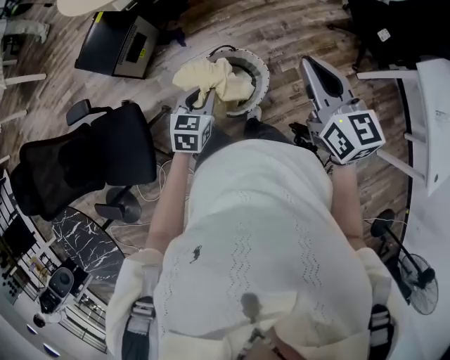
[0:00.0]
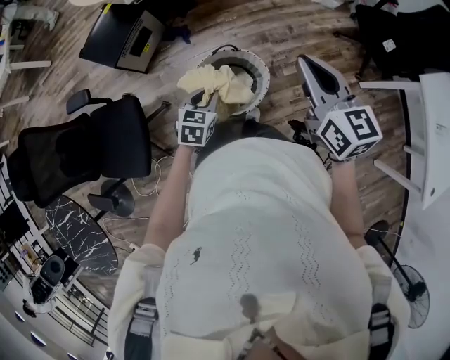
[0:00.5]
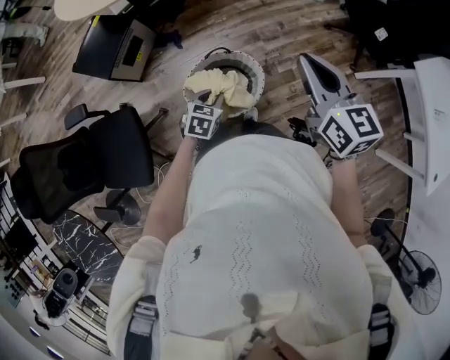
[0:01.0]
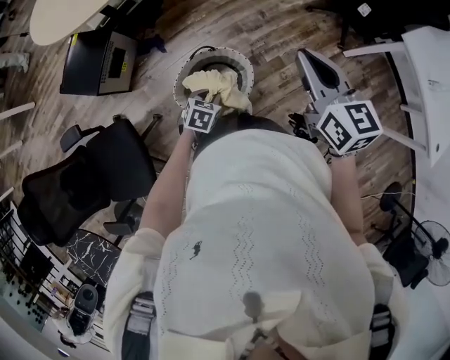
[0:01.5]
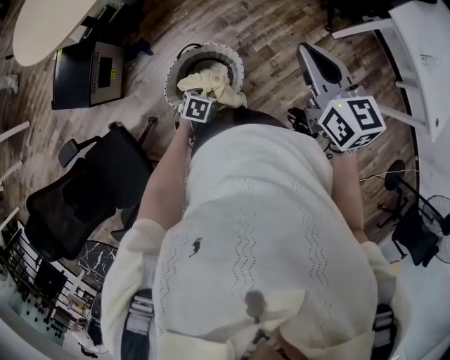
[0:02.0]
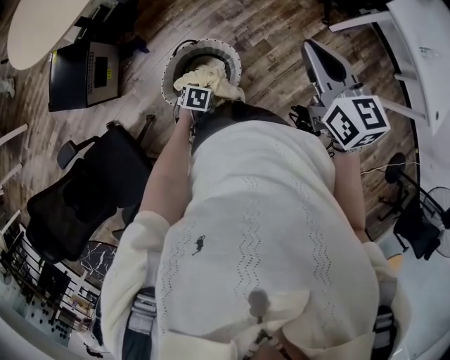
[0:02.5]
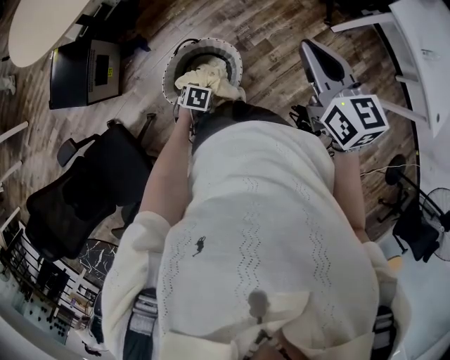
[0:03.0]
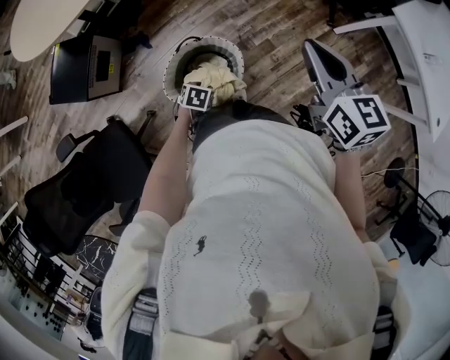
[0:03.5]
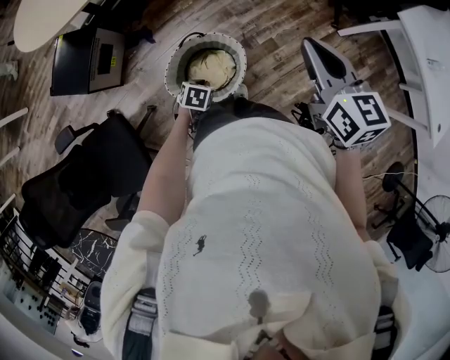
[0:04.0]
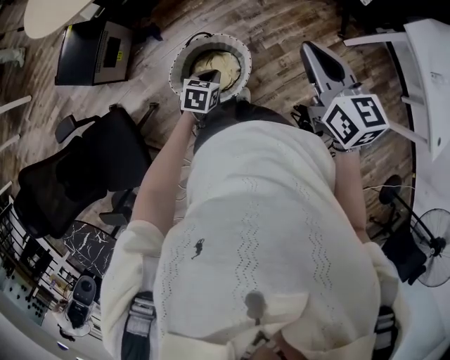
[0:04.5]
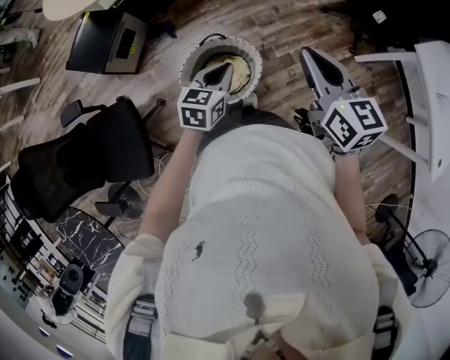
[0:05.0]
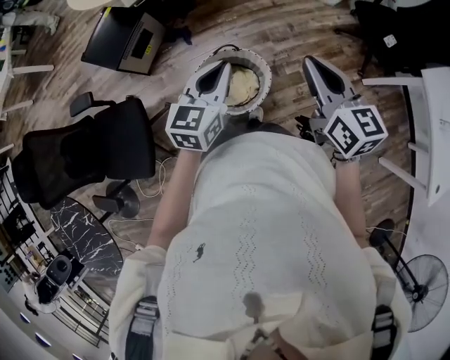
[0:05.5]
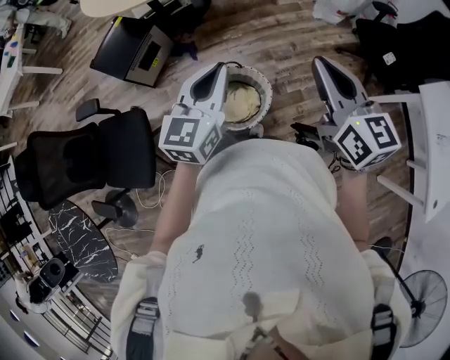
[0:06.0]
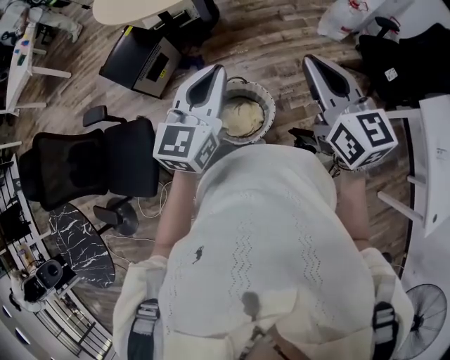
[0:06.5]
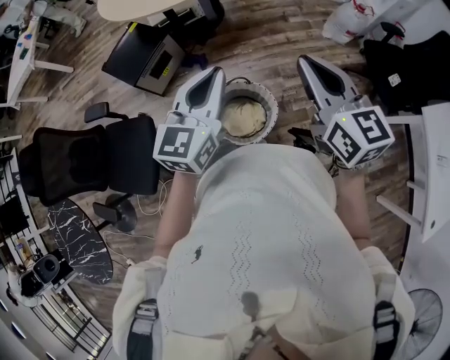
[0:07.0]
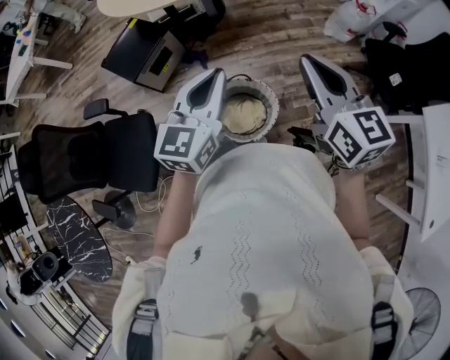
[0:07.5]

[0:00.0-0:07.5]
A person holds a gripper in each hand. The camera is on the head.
0:00.0 to 0:02.0: The left gripper travels downward by some 20 cm, and swivels roughly 40 degrees. The right gripper ends up about 10 cm from where it was.
0:02.0 to 0:04.0: The grippers stay close to where they were, moving slightly.
0:04.0 to 0:05.5: The left gripper heads upward, covering approximately 35 cm, and points its fingers about 50 degrees further upward. The right gripper shifts about 5 cm to the left.
0:05.5 to 0:07.5: The right gripper heads upward and forward, covering some 10 cm; the left gripper heads upward, covering approximately 10 cm.

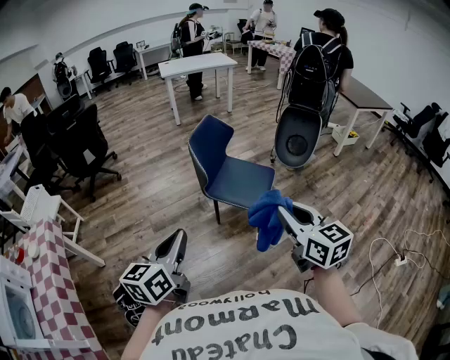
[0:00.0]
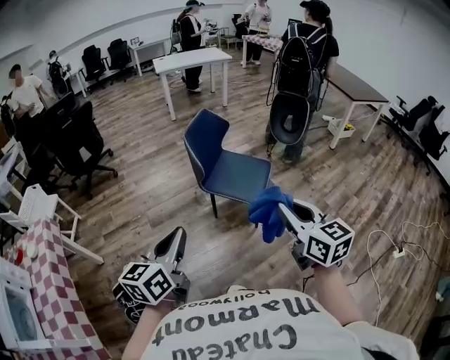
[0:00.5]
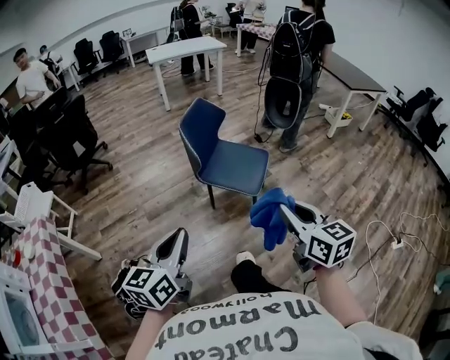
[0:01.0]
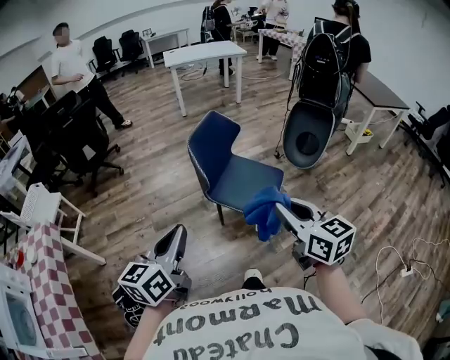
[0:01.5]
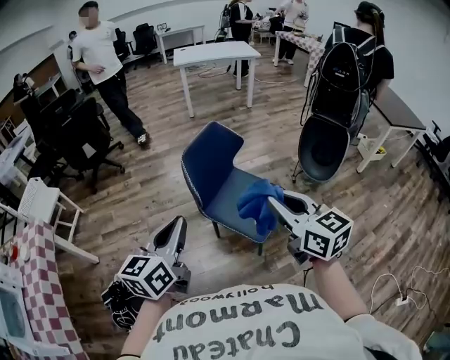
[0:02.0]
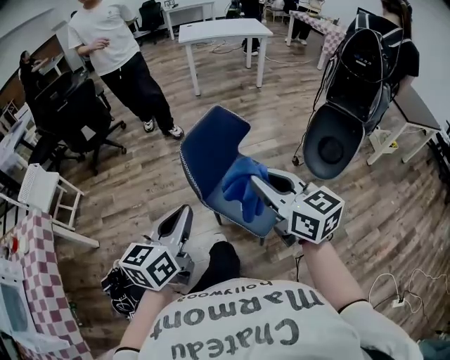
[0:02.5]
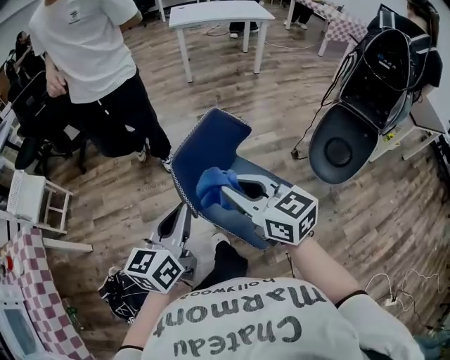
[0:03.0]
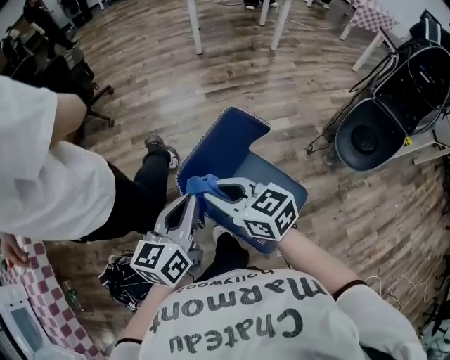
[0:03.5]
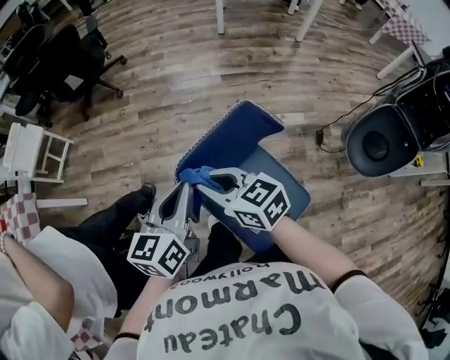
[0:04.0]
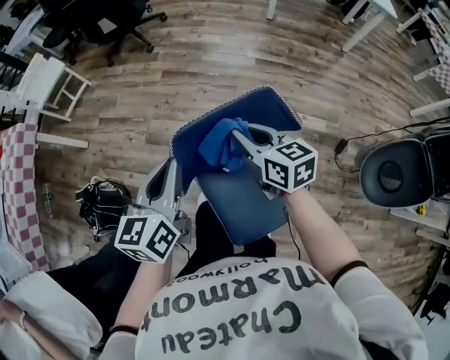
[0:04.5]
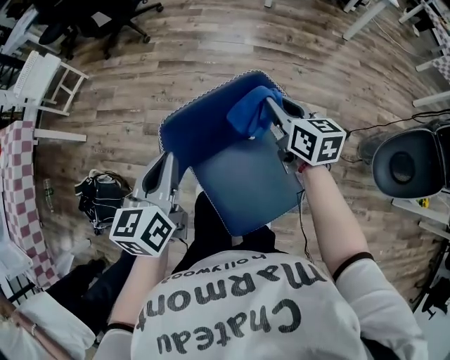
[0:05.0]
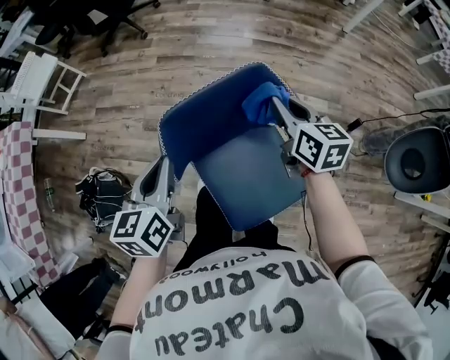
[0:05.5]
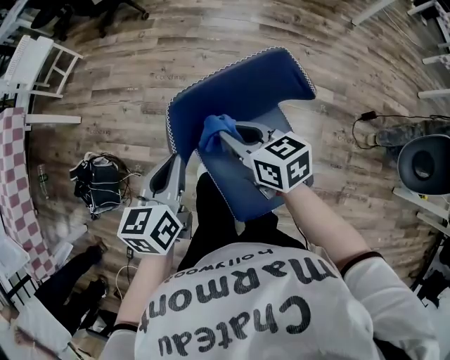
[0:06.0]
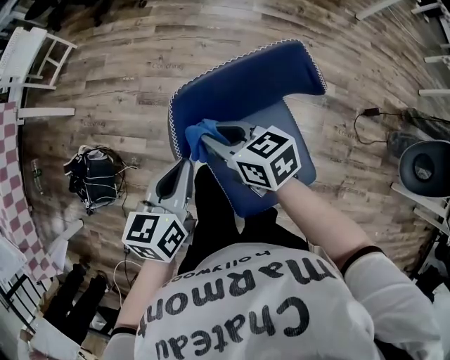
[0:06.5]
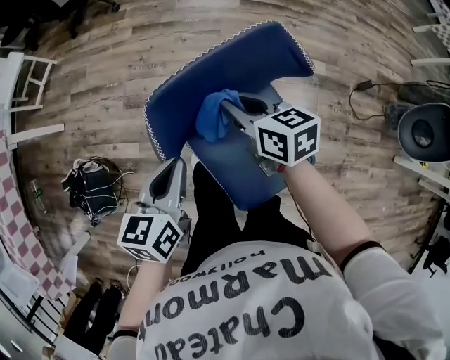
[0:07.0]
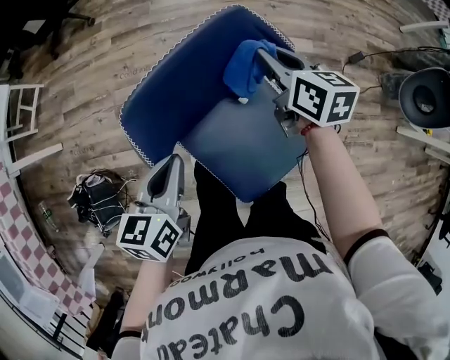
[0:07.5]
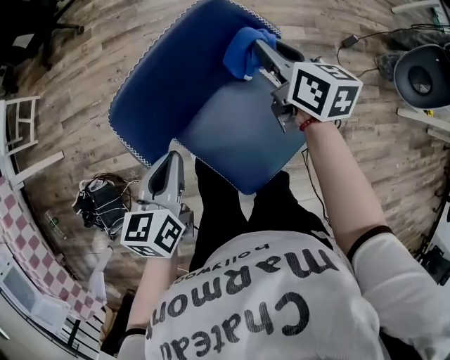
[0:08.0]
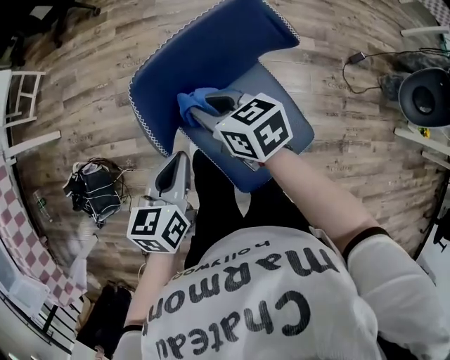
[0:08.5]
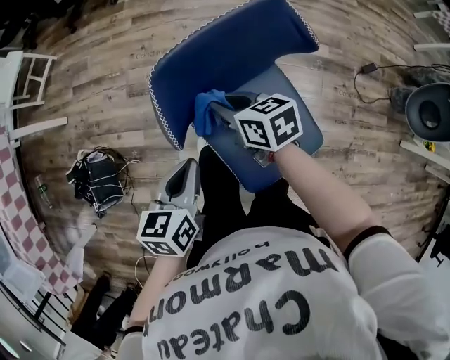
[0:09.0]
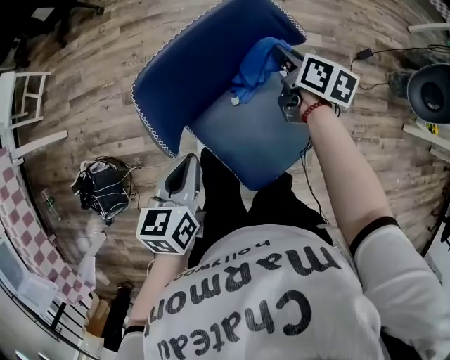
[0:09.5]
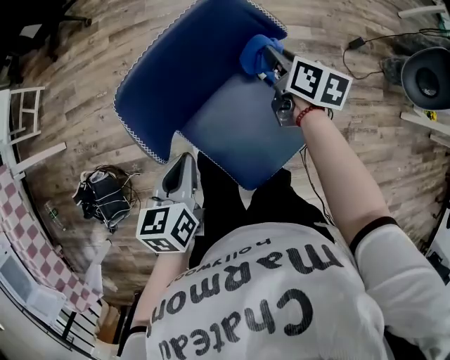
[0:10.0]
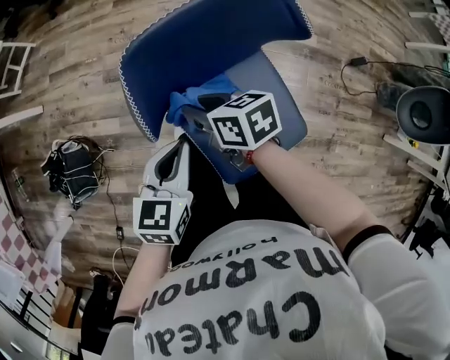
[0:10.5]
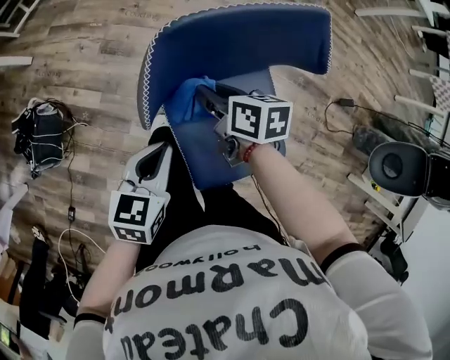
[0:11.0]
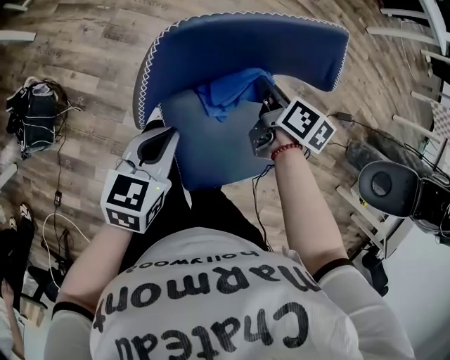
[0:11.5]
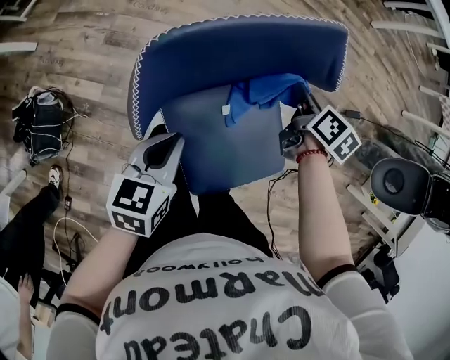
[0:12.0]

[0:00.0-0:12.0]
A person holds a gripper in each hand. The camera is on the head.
0:00.0 to 0:02.0: The left gripper moves forward and to the right, approximately 25 cm. Meanwhile the right gripper goes about 25 cm forward.
0:02.0 to 0:04.0: The left gripper shifts by some 35 cm, and turns by about 20 degrees. The right gripper changes place by some 40 cm, and changes its angle by about 50 degrees.
0:04.0 to 0:06.0: The grippers both shift downward by roughly 10 cm. The right gripper moves approximately 20 cm to the right and comes back. Meanwhile the left gripper rotates roughly 20 degrees.
0:06.0 to 0:08.0: The left gripper heads downward, covering about 5 cm; the right gripper ends up roughly 20 cm from where it was, and rotates roughly 40 degrees.
0:08.0 to 0:10.0: The right gripper heads downward, covering some 5 cm, and travels to the left and back again, some 20 cm each way.
0:10.0 to 0:12.0: Both grippers travel together downward, about 5 cm.

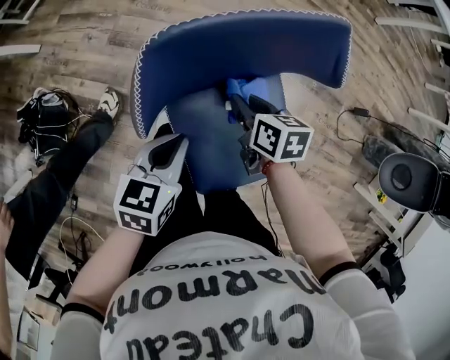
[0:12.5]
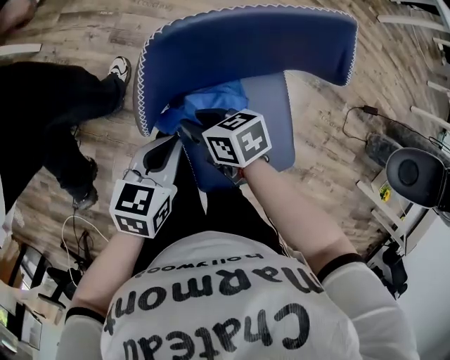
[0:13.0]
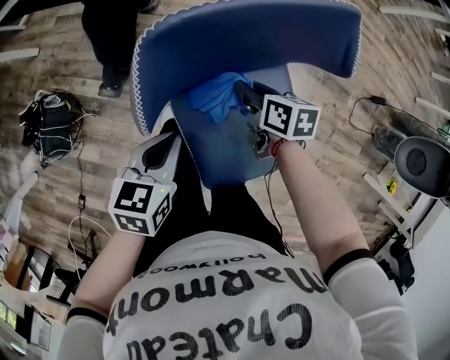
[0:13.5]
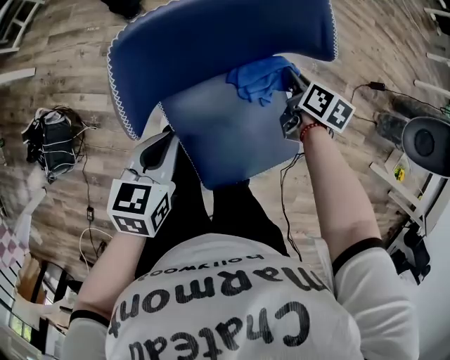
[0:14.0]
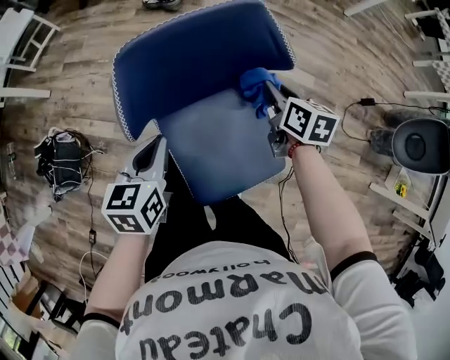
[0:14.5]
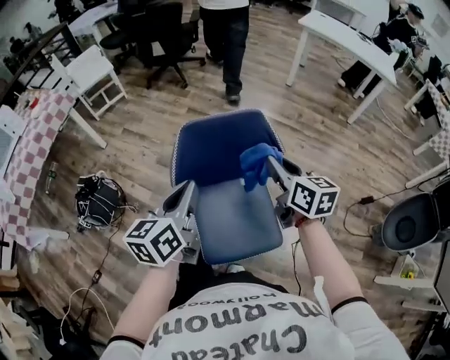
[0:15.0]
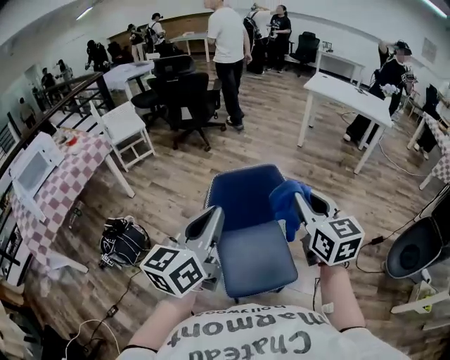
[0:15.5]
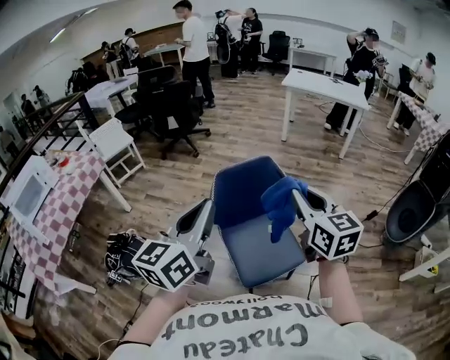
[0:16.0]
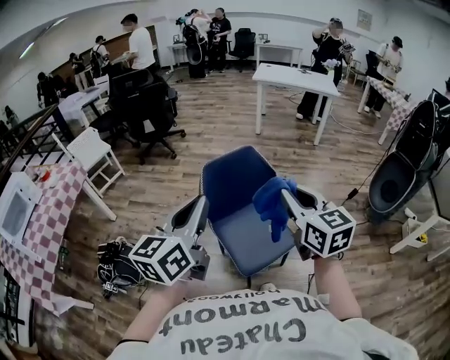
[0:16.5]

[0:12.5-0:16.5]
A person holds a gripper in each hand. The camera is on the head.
0:12.5 to 0:14.5: The right gripper moves approximately 15 cm, while the left gripper is displaced upward by roughly 5 cm.
0:14.5 to 0:16.5: Both grippers travel together upward and backward, approximately 50 cm. The left gripper angles its fingers upward, by roughly 40 degrees. The right gripper changes its angle by some 40 degrees.

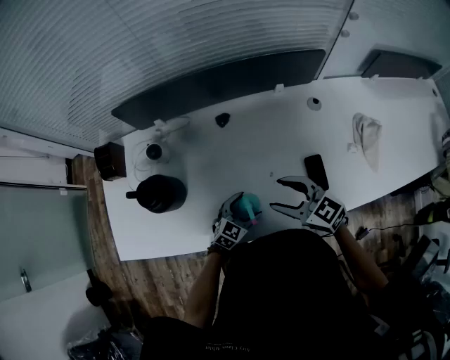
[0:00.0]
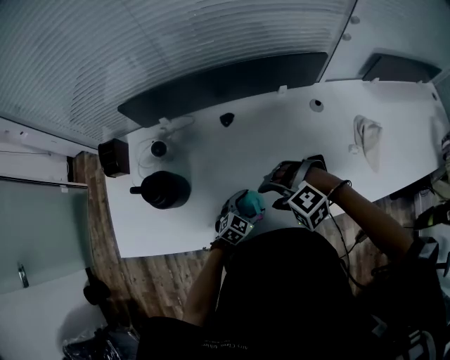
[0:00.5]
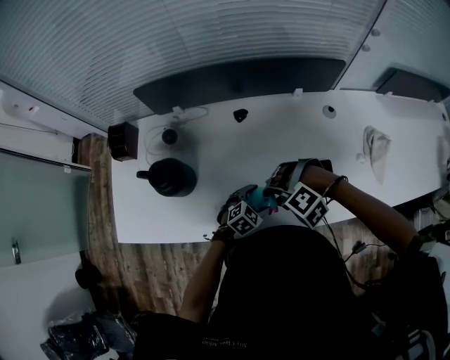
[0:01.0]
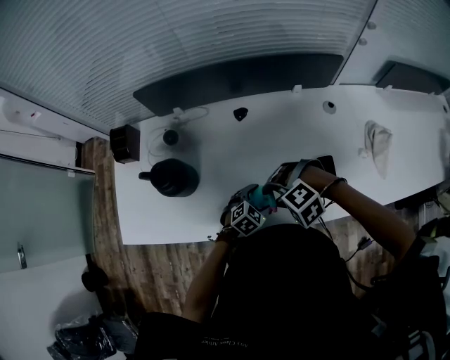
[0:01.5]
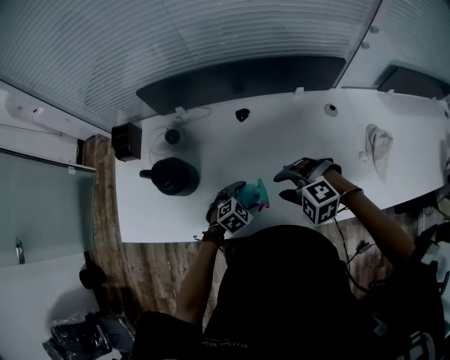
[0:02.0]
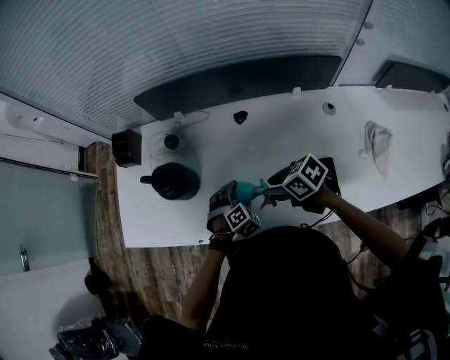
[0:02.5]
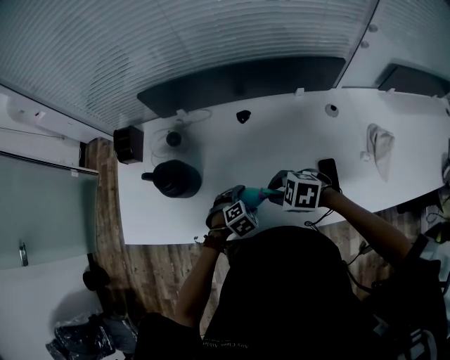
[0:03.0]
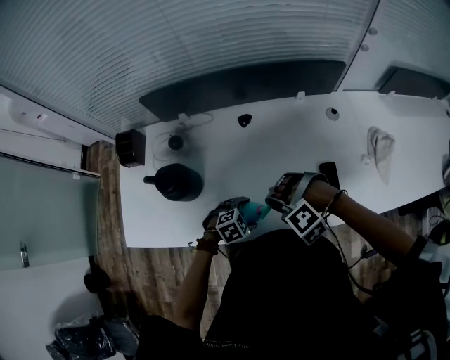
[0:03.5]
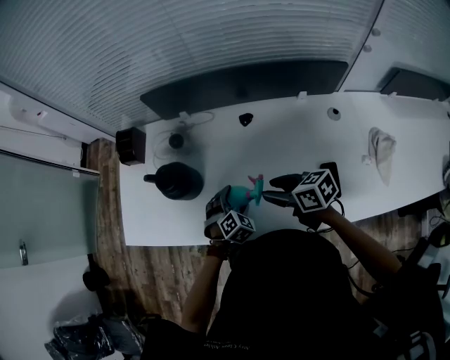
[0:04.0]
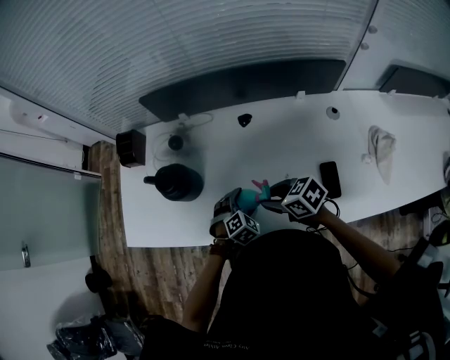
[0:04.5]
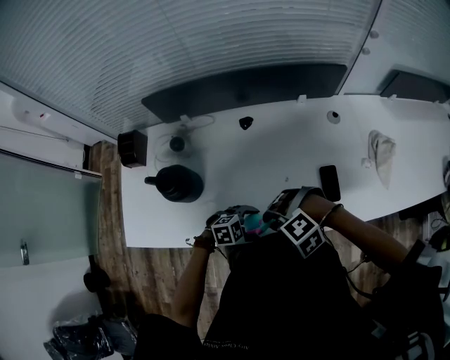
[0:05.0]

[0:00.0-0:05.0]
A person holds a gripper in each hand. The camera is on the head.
0:00.0 to 0:02.5: The left gripper ends up some 10 cm from where it was, and rotates roughly 40 degrees; the right gripper ends up approximately 5 cm from where it was, and changes its angle by roughly 40 degrees.
0:02.5 to 0:05.0: The left gripper shifts by about 15 cm, and changes its angle by roughly 50 degrees. The right gripper moves about 10 cm, and rotates around the line of its fingers by about 80 degrees, counterclockwise from behind.
